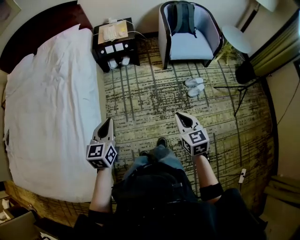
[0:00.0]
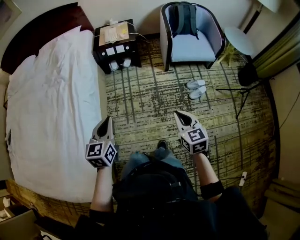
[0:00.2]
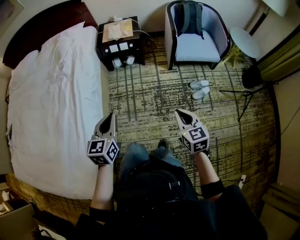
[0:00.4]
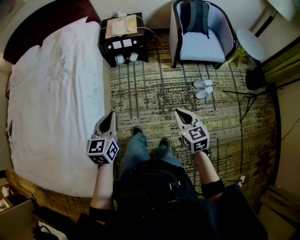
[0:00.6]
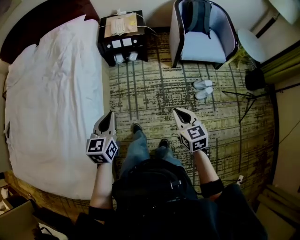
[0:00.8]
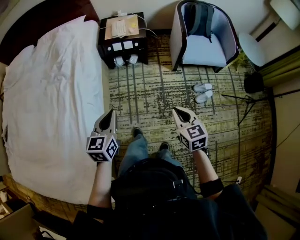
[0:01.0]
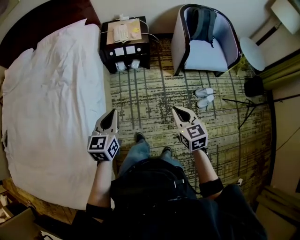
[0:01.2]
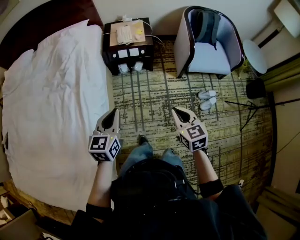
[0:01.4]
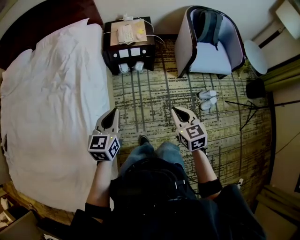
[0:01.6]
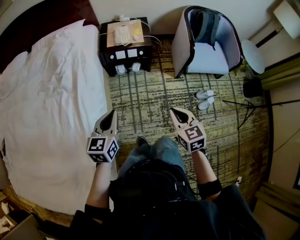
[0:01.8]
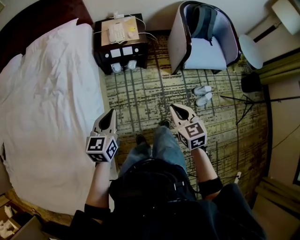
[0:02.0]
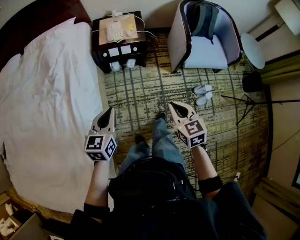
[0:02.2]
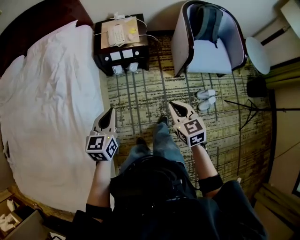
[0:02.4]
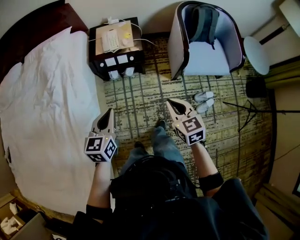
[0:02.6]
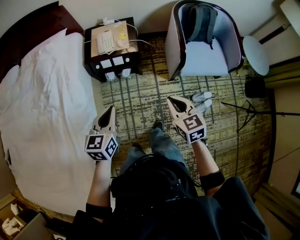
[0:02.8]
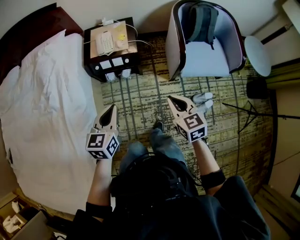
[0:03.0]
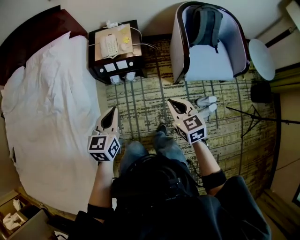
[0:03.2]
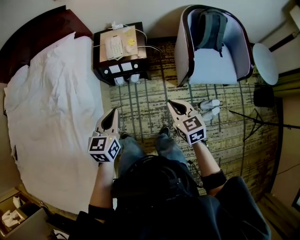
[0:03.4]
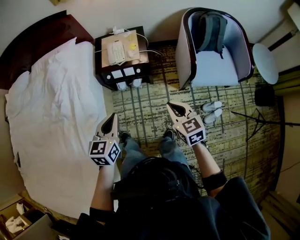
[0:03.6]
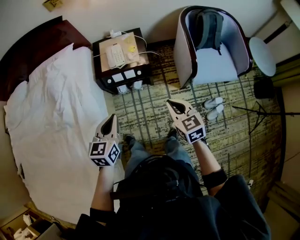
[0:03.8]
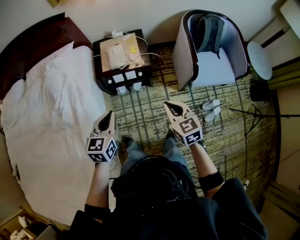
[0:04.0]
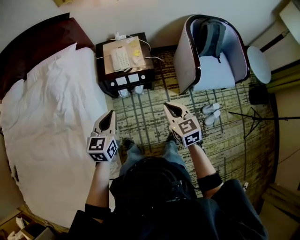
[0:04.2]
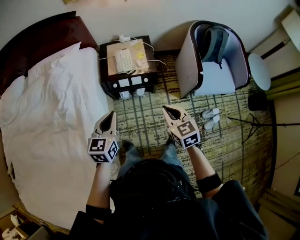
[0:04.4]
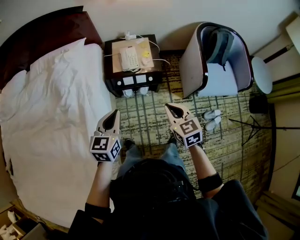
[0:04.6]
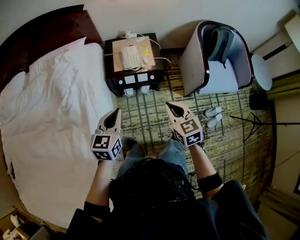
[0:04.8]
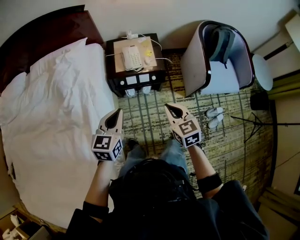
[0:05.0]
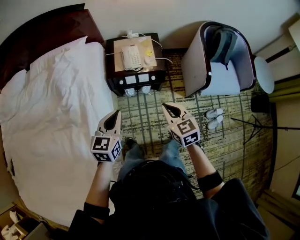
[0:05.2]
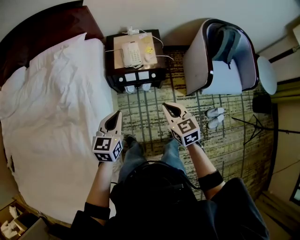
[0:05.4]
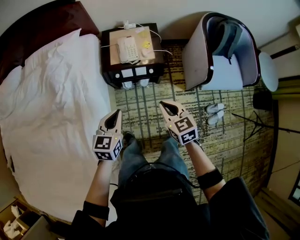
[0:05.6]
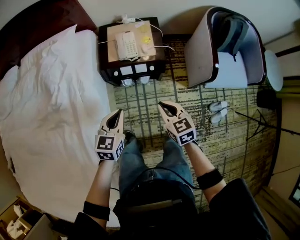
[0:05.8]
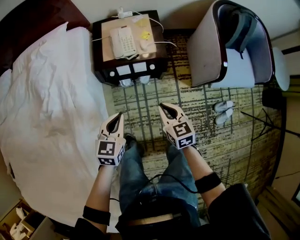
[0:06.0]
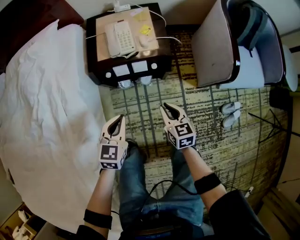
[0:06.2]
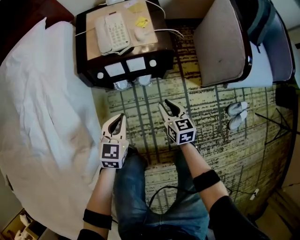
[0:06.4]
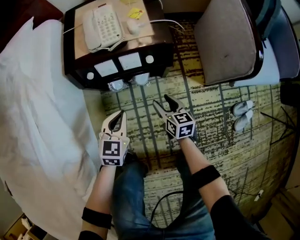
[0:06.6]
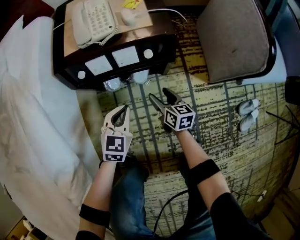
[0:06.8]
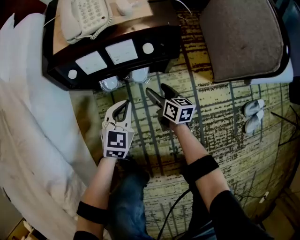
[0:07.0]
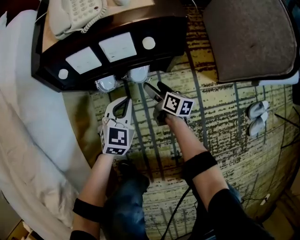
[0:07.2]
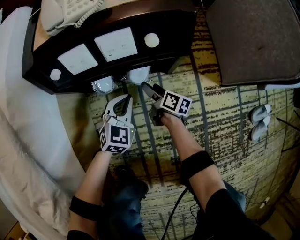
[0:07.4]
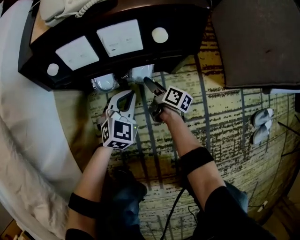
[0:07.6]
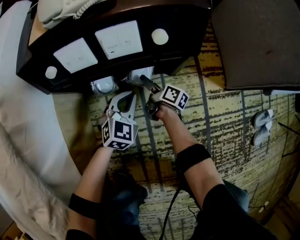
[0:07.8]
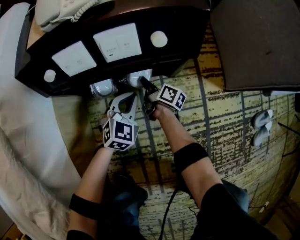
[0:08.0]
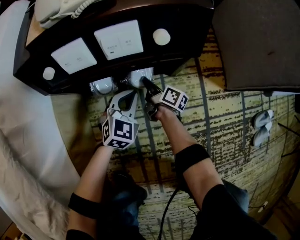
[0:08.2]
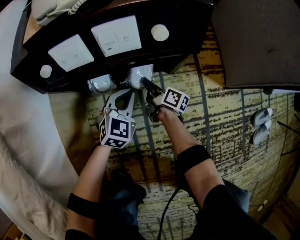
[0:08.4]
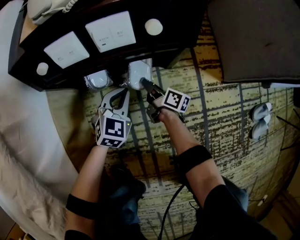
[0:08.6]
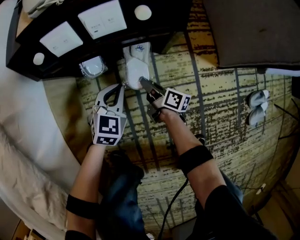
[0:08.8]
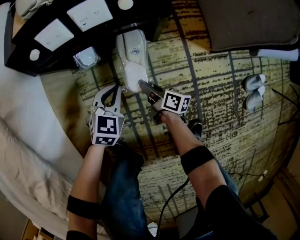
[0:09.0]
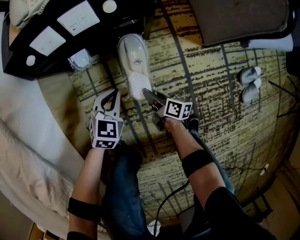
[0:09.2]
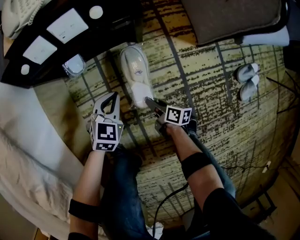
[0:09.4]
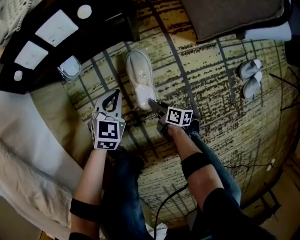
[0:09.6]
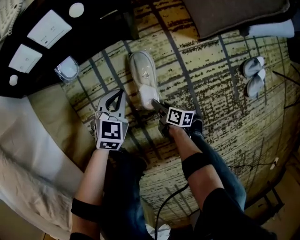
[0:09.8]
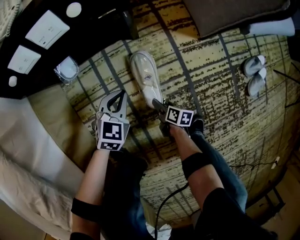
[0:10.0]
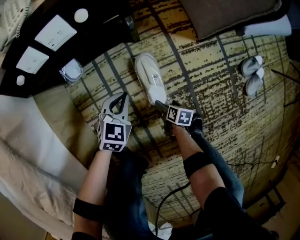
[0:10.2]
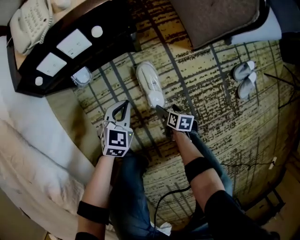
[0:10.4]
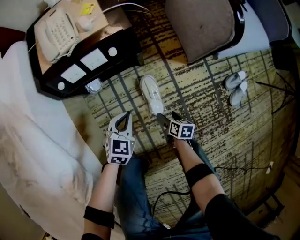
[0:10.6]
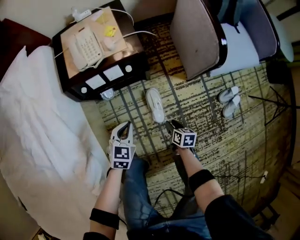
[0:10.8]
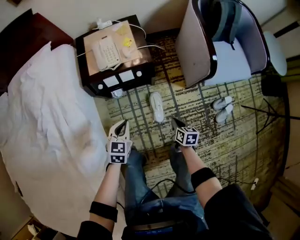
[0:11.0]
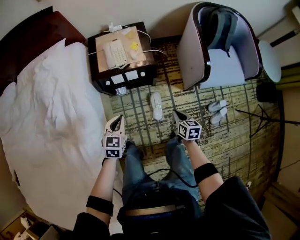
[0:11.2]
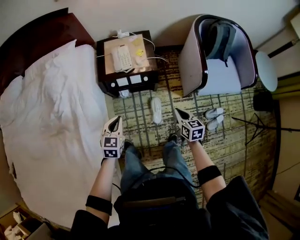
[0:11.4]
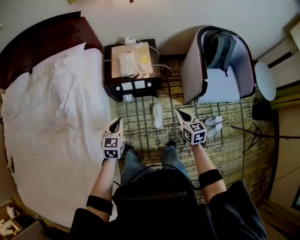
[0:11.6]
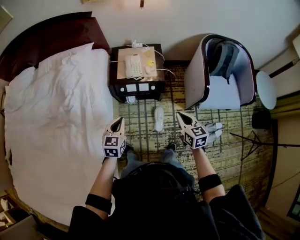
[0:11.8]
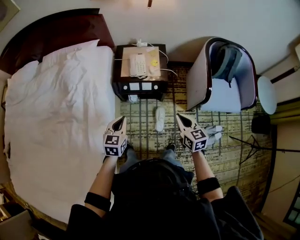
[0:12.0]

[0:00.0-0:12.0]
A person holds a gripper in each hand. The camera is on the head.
0:00.0 to 0:01.6: The left gripper heads forward, covering some 30 cm, while the right gripper shifts roughly 35 cm forward and to the left.
0:01.6 to 0:03.0: Both grippers move forward and to the right, approximately 25 cm.
0:03.0 to 0:04.4: The grippers both shift to the left and forward by roughly 20 cm.
0:04.4 to 0:06.0: The grippers both shift downward by approximately 20 cm.
0:06.0 to 0:07.6: Both grippers travel together downward, roughly 60 cm. The right gripper twists roughly 60 degrees clockwise, seen from behind, and opens up; the left gripper changes its angle by approximately 30 degrees.
0:07.6 to 0:09.0: The left gripper shifts about 10 cm backward. The right gripper moves backward, about 15 cm, and closes.
0:09.0 to 0:10.4: The left gripper goes about 10 cm to the right; the right gripper shifts approximately 20 cm to the right and backward, points its fingers roughly 40 degrees further downward, and opens up.
0:10.4 to 0:12.0: Both grippers move upward, some 70 cm. The left gripper swivels roughly 40 degrees, while the right gripper rotates around the line of its fingers by approximately 50 degrees, counterclockwise from behind, and closes up.

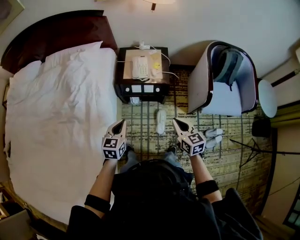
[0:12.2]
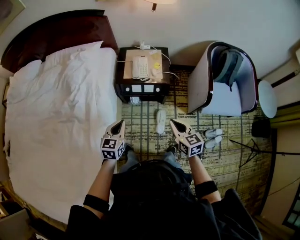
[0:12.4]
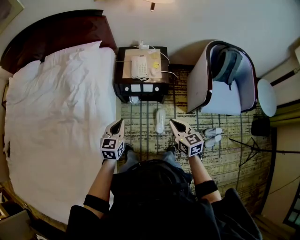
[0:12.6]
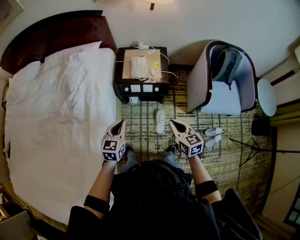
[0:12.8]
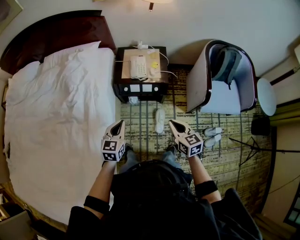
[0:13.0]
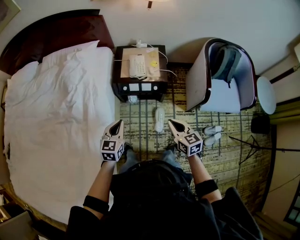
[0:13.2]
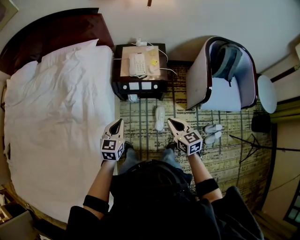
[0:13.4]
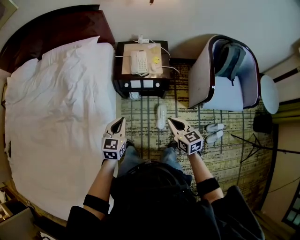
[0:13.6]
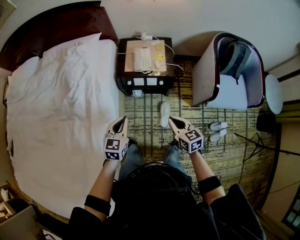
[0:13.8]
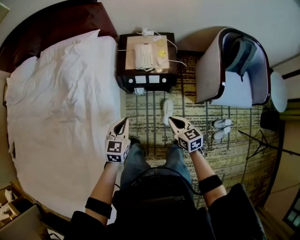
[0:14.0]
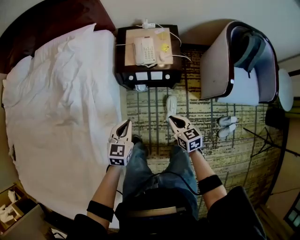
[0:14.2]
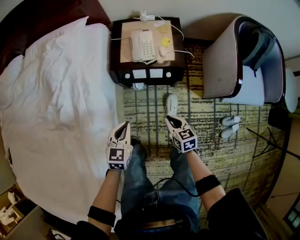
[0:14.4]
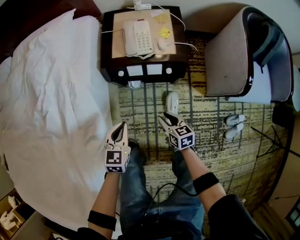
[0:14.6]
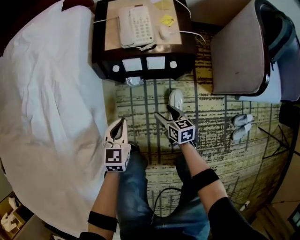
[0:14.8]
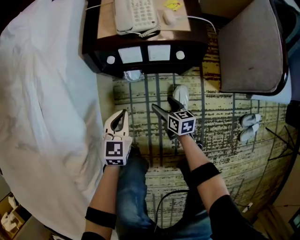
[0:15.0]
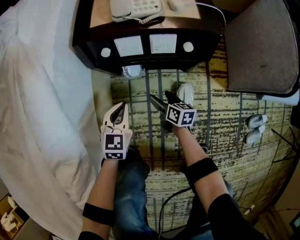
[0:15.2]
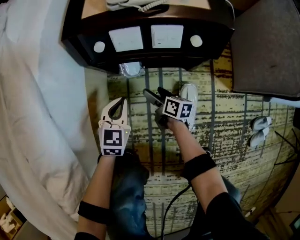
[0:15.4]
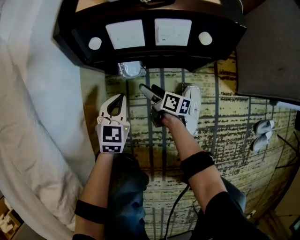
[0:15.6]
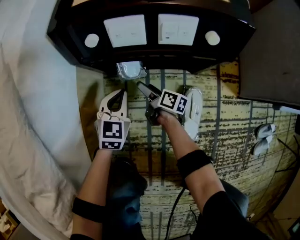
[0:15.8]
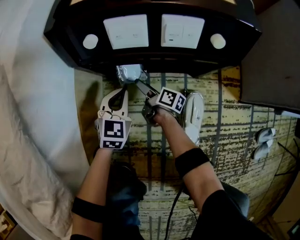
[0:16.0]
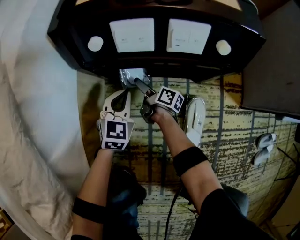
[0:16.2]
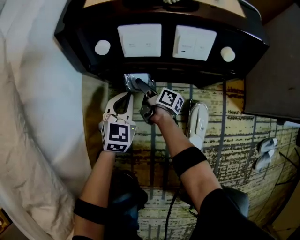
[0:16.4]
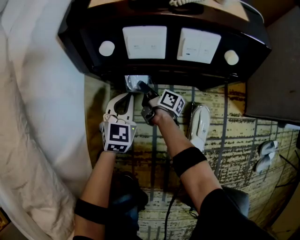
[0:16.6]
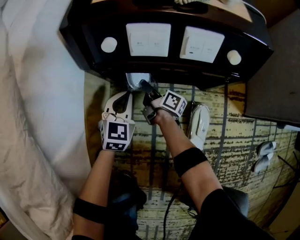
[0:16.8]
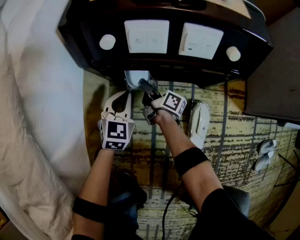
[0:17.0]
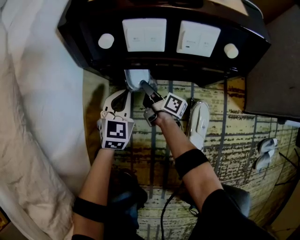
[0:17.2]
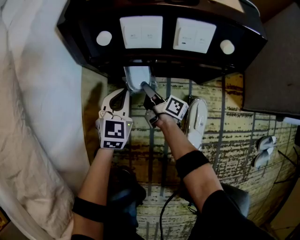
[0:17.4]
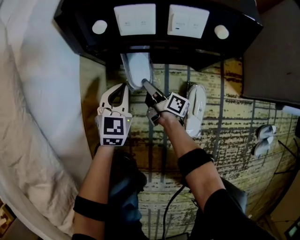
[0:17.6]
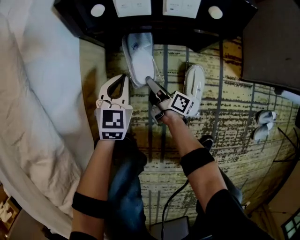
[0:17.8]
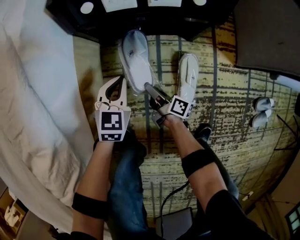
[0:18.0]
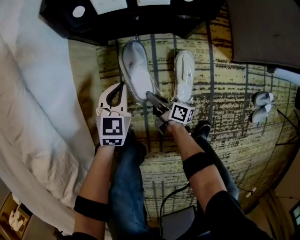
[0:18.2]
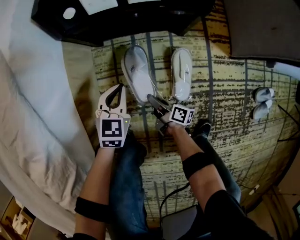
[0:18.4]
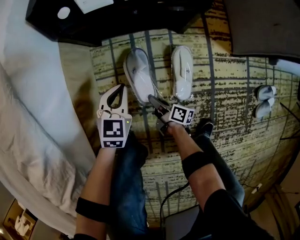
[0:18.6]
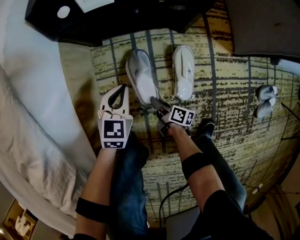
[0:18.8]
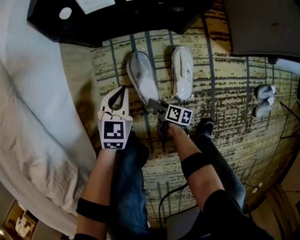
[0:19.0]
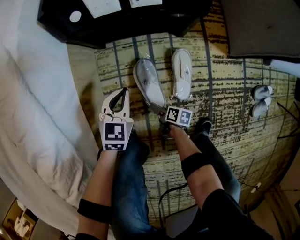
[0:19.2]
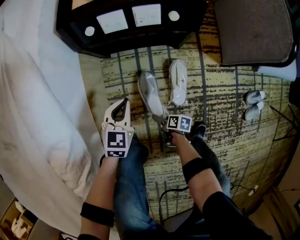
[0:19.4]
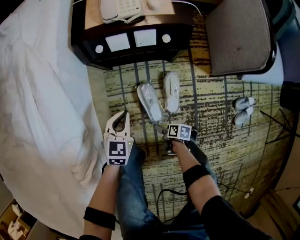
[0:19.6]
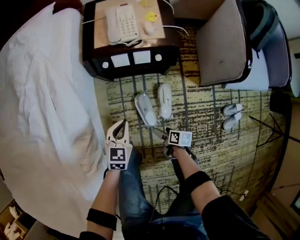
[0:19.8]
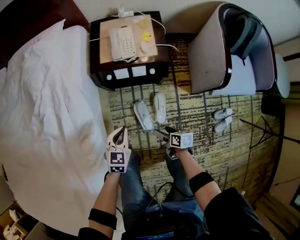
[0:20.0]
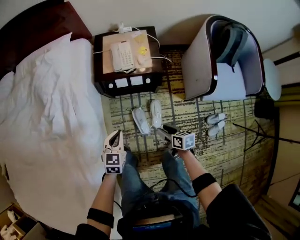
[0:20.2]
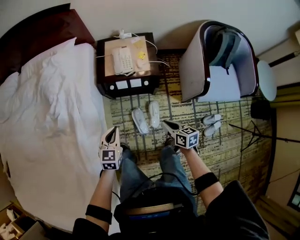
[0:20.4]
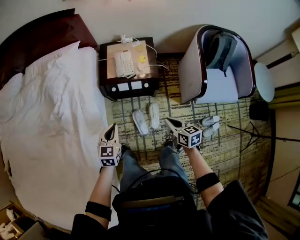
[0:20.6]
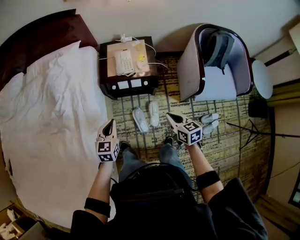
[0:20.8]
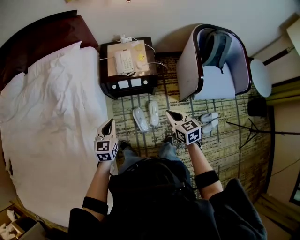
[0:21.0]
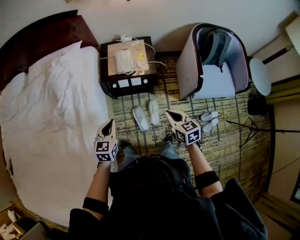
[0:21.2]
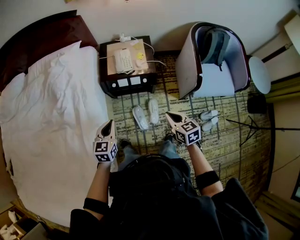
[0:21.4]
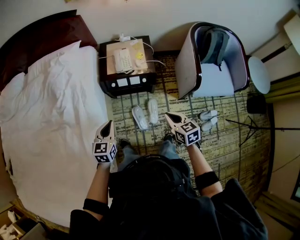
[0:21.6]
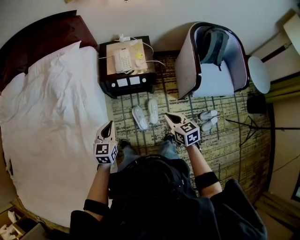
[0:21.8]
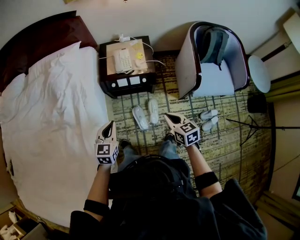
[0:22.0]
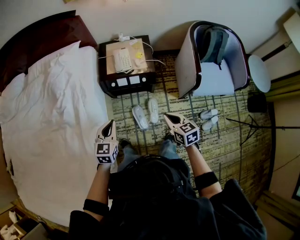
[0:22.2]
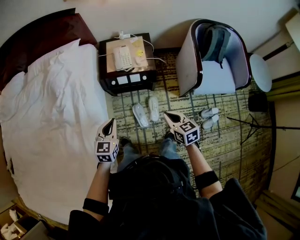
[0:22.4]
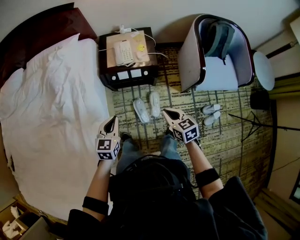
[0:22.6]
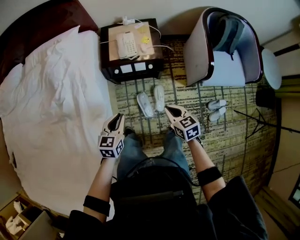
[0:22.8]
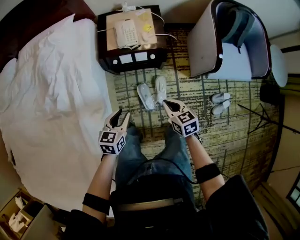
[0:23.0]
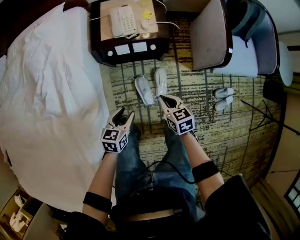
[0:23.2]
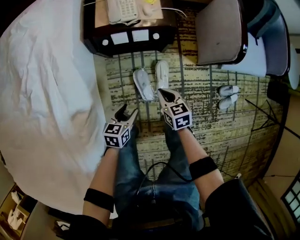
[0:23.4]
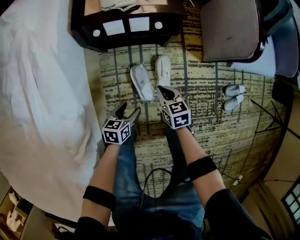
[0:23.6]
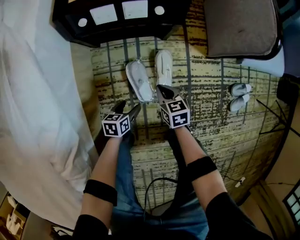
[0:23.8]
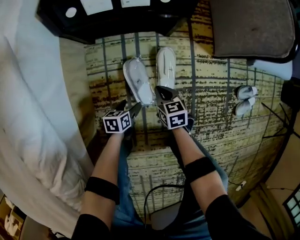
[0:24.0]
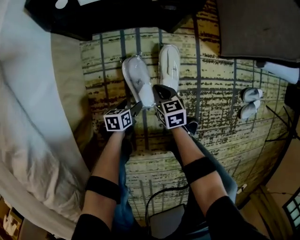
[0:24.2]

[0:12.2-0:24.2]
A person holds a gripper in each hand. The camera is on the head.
0:12.2 to 0:13.8: The right gripper shifts by some 5 cm.
0:13.8 to 0:15.2: The two grippers go about 60 cm downward. The right gripper swivels some 30 degrees, and opens up.
0:15.2 to 0:16.6: The left gripper moves downward and forward, approximately 20 cm; the right gripper moves forward, downward and to the left, about 25 cm, swivels about 40 degrees, and closes up.
0:16.6 to 0:18.2: The right gripper heads backward, covering some 30 cm. The left gripper shifts some 20 cm backward and upward.
0:18.2 to 0:19.8: The left gripper is displaced upward by about 25 cm. Meanwhile the right gripper heads upward and backward, covering roughly 25 cm, points its fingers approximately 30 degrees further downward, and opens up.
0:19.8 to 0:21.2: Both grippers travel together upward, roughly 40 cm. The right gripper rolls counterclockwise, seen from behind, by approximately 50 degrees, and closes its fingers.
0:21.2 to 0:22.6: The grippers stay close to where they were, moving slightly.
0:22.6 to 0:24.2: The two grippers go approximately 80 cm downward. The left gripper swivels some 50 degrees, and opens its fingers.
